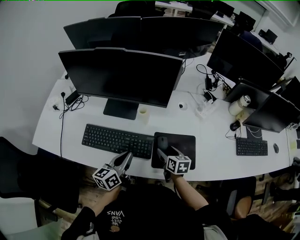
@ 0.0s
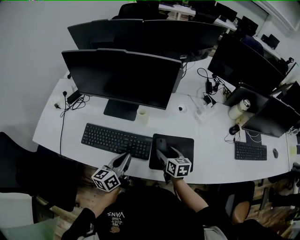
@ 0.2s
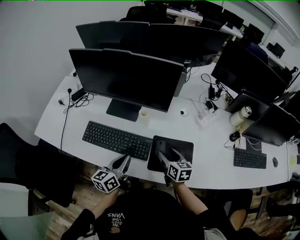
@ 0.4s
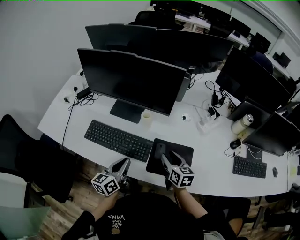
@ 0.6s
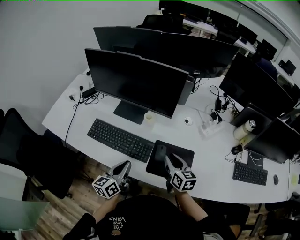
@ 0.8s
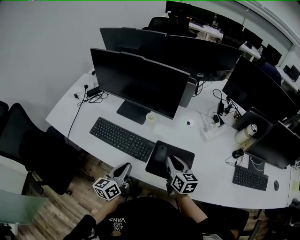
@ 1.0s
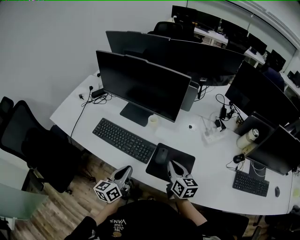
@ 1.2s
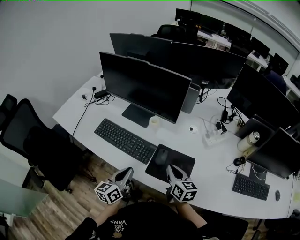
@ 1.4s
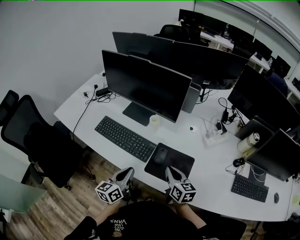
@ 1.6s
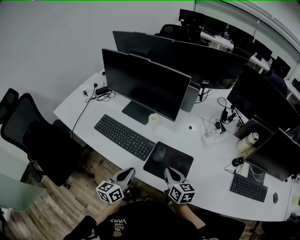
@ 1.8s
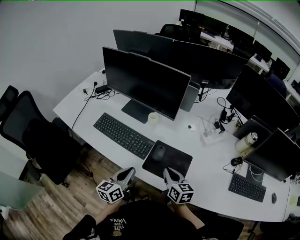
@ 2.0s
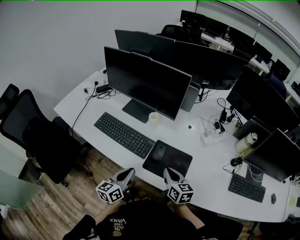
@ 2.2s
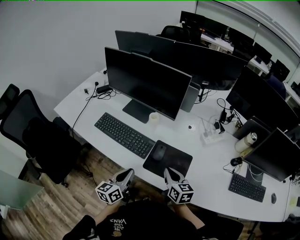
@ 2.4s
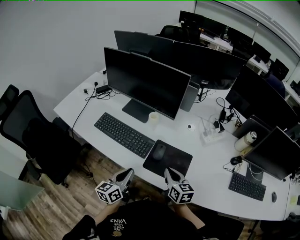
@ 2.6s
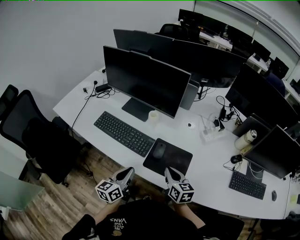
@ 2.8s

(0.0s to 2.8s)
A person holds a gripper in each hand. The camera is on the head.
0.0s - 1.4s: The left gripper is displaced backward by about 10 cm, and rotates about 20 degrees; the right gripper goes approximately 10 cm upward and backward, changes its angle by approximately 20 degrees, and closes up.
1.4s - 2.8s: The grippers make only small movements.

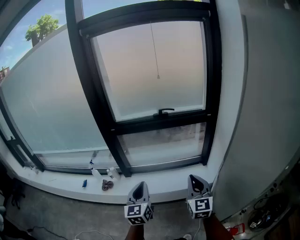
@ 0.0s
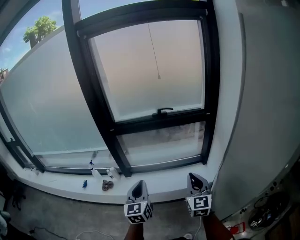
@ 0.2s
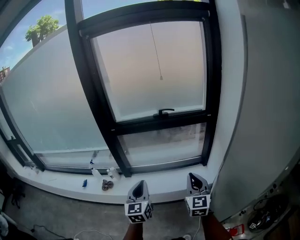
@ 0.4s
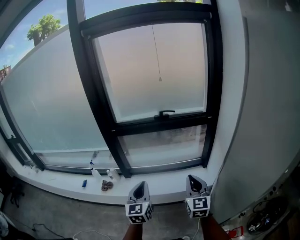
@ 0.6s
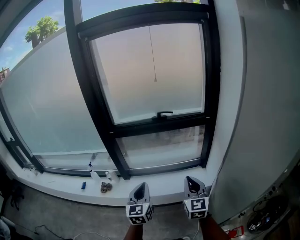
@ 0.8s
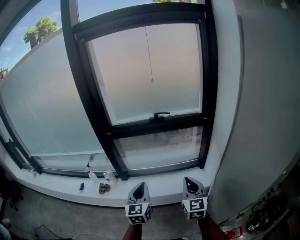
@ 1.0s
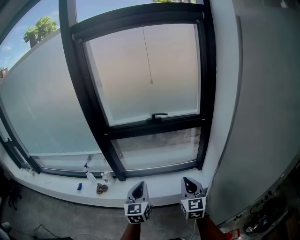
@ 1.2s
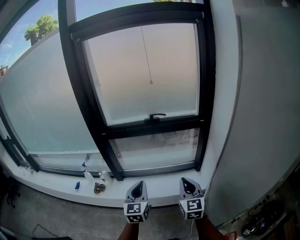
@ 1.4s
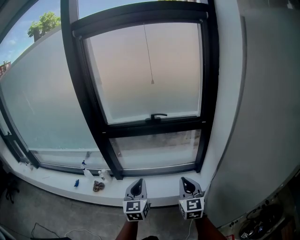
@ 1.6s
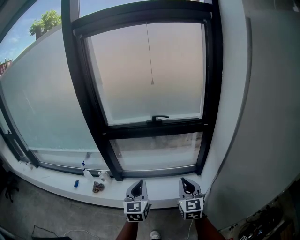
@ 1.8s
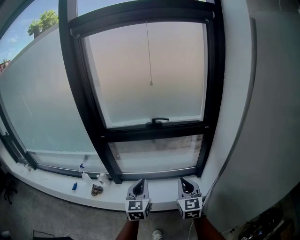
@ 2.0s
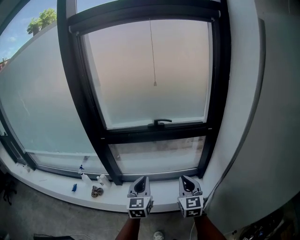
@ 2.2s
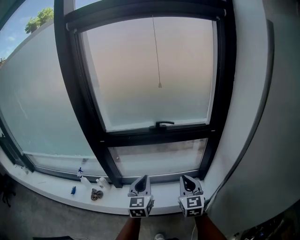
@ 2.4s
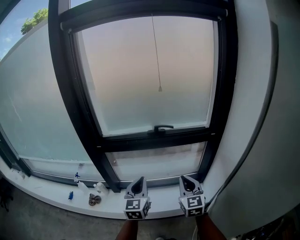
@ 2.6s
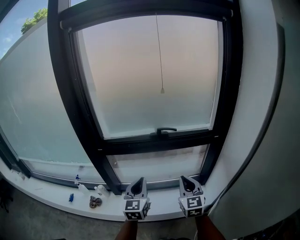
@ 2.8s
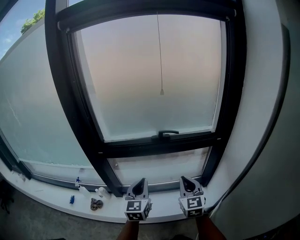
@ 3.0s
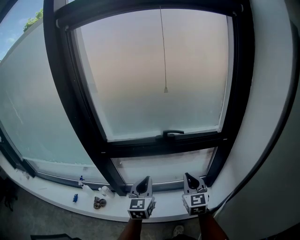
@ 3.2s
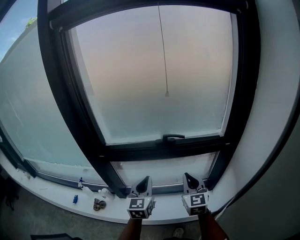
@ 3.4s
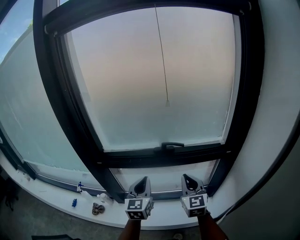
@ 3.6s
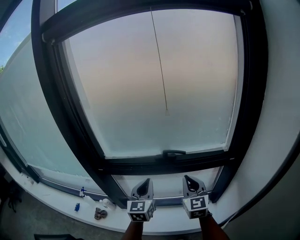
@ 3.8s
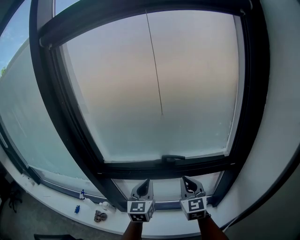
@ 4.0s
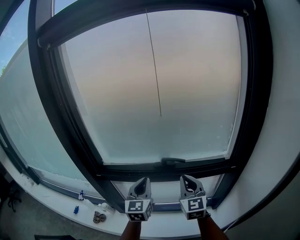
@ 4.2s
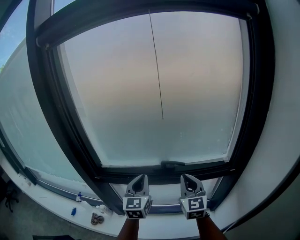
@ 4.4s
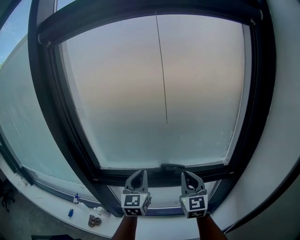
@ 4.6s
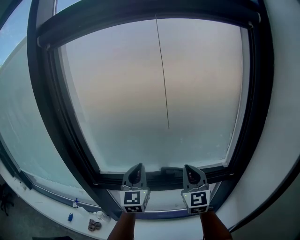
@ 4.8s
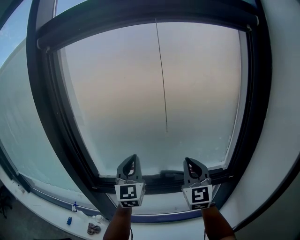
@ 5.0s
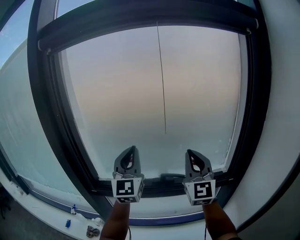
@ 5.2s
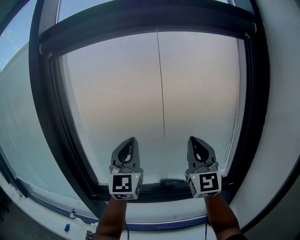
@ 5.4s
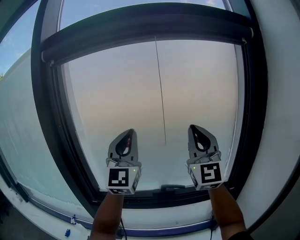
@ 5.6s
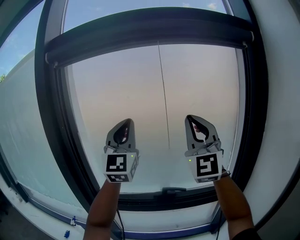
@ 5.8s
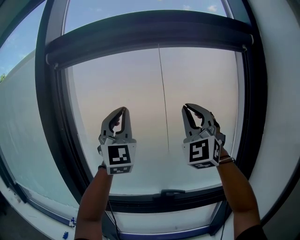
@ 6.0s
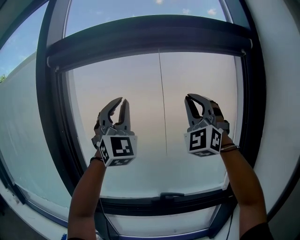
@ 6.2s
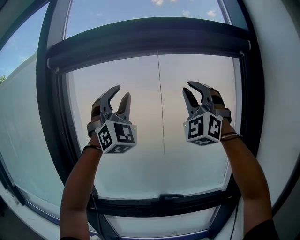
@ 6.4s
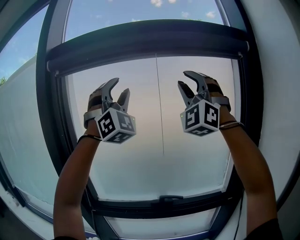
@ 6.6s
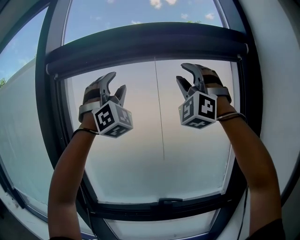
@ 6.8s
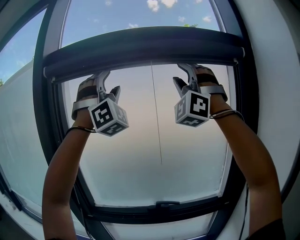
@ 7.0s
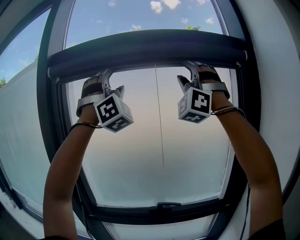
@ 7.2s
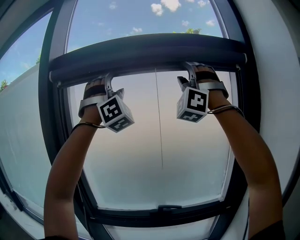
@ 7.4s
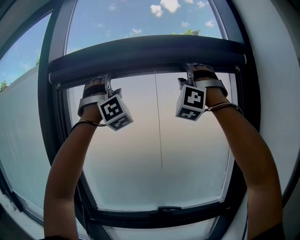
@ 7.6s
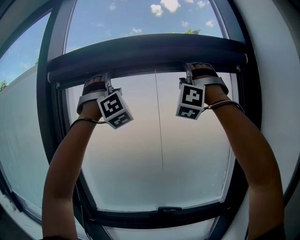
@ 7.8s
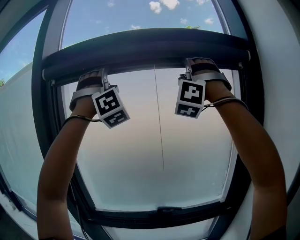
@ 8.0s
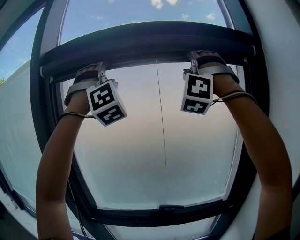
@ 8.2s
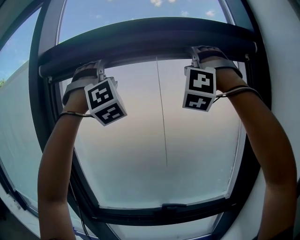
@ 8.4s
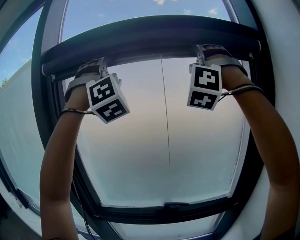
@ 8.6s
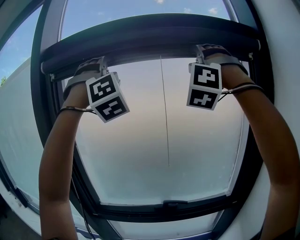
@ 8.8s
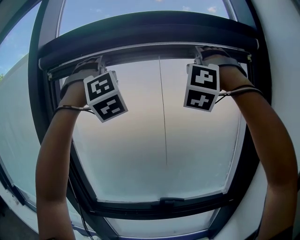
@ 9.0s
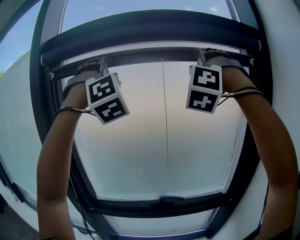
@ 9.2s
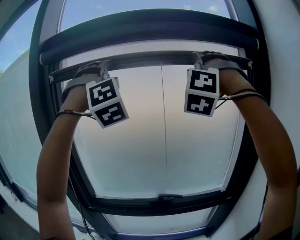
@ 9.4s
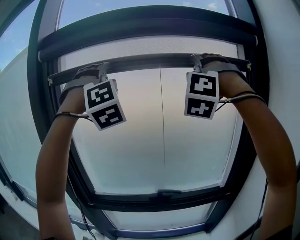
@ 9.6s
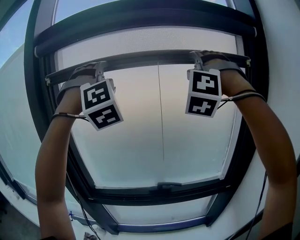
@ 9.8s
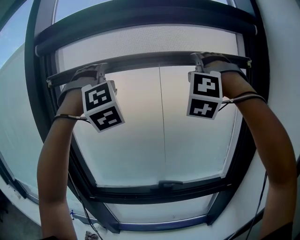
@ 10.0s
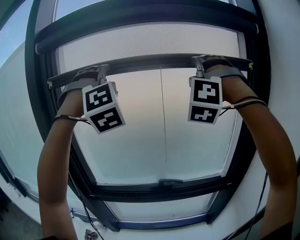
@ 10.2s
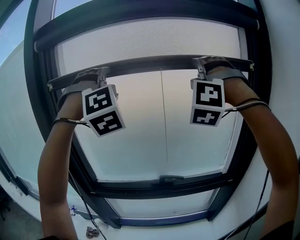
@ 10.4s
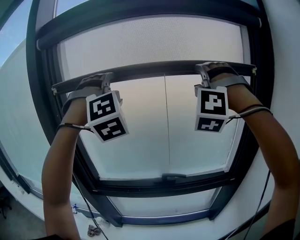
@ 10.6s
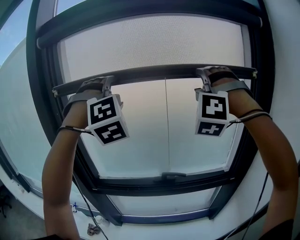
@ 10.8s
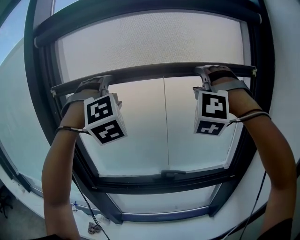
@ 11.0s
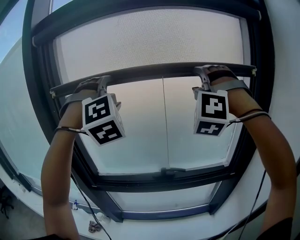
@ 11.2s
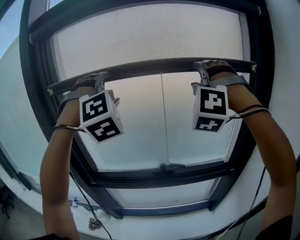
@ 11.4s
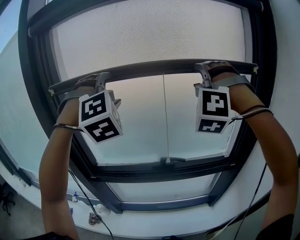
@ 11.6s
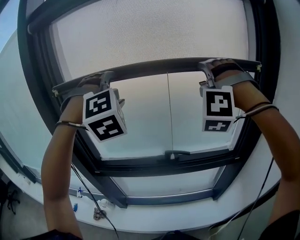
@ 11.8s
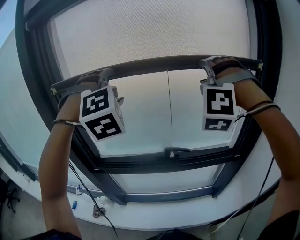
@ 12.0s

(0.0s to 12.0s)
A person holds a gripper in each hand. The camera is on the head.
0.0s - 1.6s: The right gripper is displaced forward by some 5 cm; the left gripper travels to the right and forward by some 10 cm.
1.6s - 3.0s: Both grippers move forward, some 20 cm.
3.0s - 4.4s: Both grippers move forward, roughly 20 cm.
4.4s - 6.0s: The two grippers go roughly 40 cm upward. The left gripper tilts its fingers about 40 degrees upward. The right gripper twists some 50 degrees counterclockwise, seen from behind.
6.0s - 7.6s: Both grippers travel together upward, about 20 cm. The left gripper twists roughly 50 degrees clockwise, seen from behind, and opens its fingers; the right gripper rolls counterclockwise, seen from behind, by roughly 40 degrees, and opens.
7.6s - 9.0s: The grippers stay close to where they were, moving slightly.
9.0s - 10.4s: Both grippers move downward, about 10 cm.
10.4s - 12.0s: The two grippers go roughly 15 cm downward.

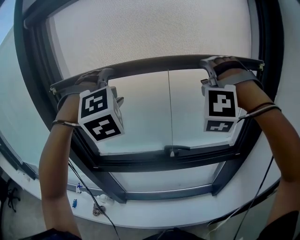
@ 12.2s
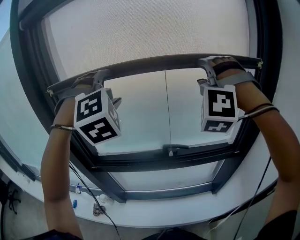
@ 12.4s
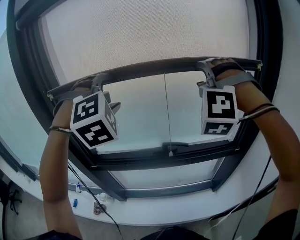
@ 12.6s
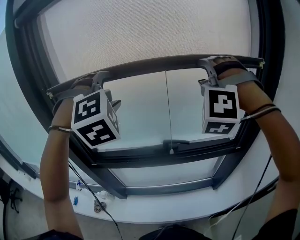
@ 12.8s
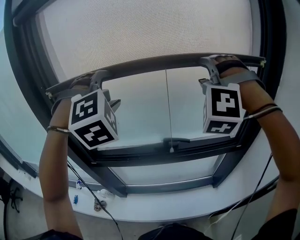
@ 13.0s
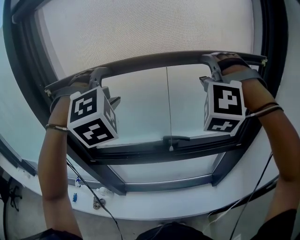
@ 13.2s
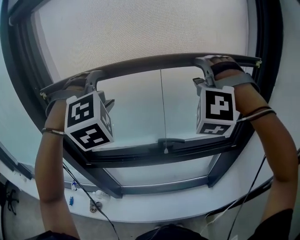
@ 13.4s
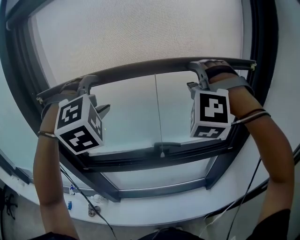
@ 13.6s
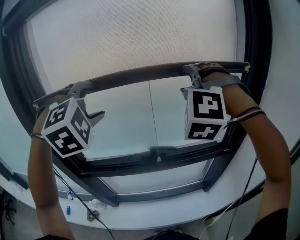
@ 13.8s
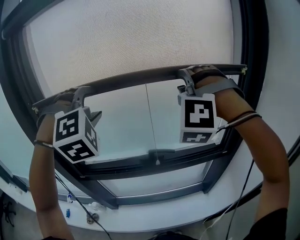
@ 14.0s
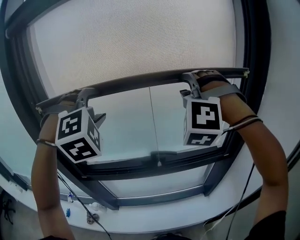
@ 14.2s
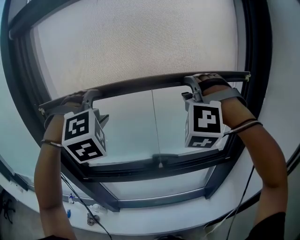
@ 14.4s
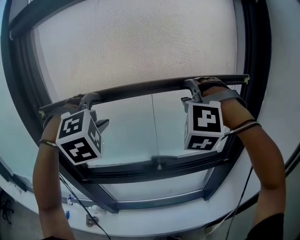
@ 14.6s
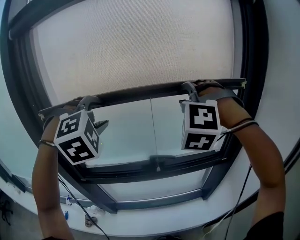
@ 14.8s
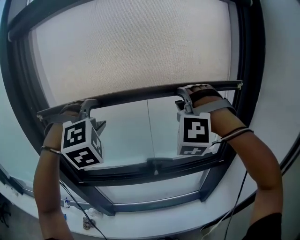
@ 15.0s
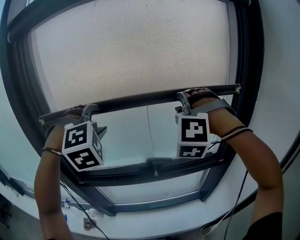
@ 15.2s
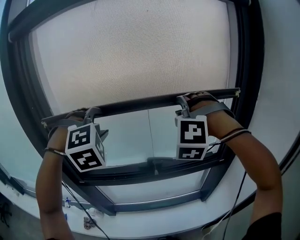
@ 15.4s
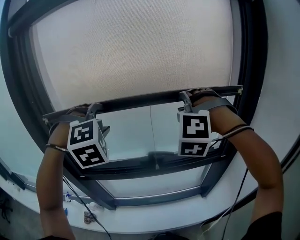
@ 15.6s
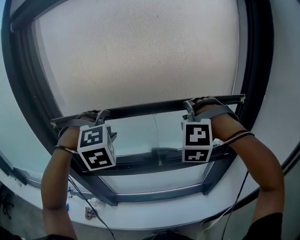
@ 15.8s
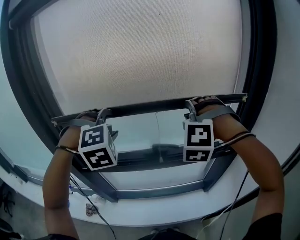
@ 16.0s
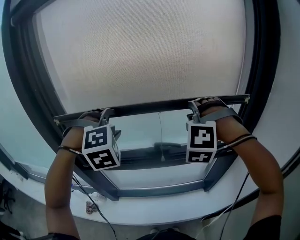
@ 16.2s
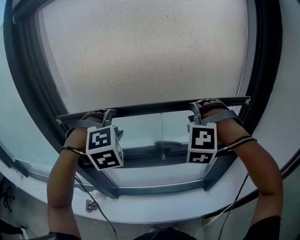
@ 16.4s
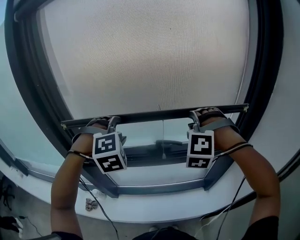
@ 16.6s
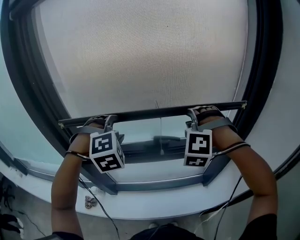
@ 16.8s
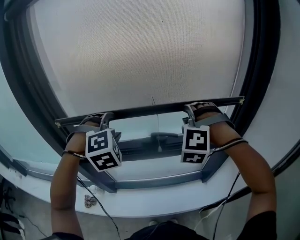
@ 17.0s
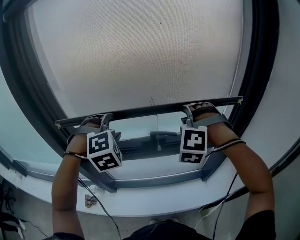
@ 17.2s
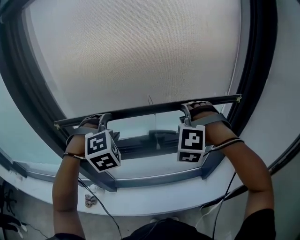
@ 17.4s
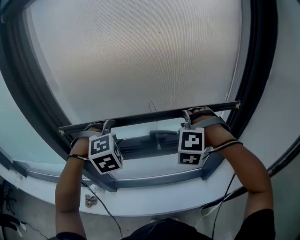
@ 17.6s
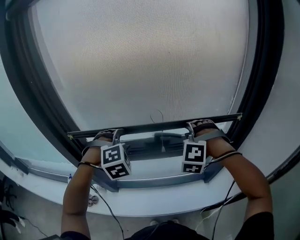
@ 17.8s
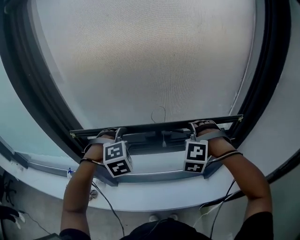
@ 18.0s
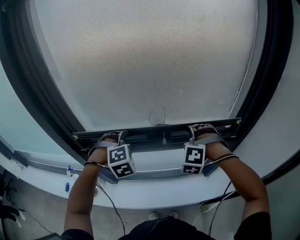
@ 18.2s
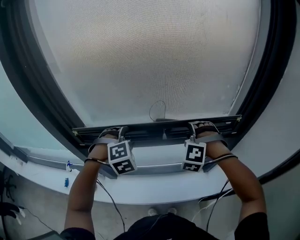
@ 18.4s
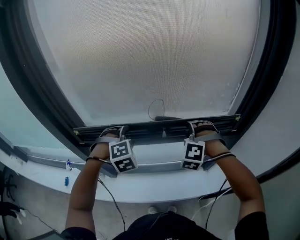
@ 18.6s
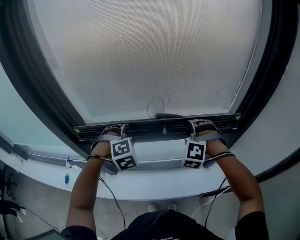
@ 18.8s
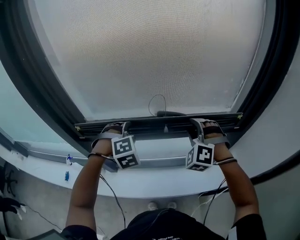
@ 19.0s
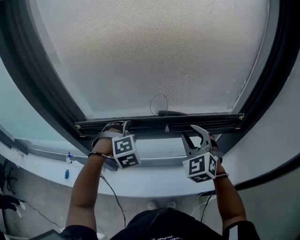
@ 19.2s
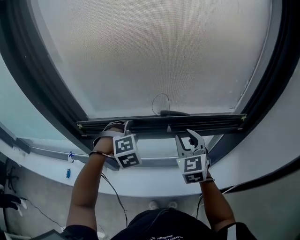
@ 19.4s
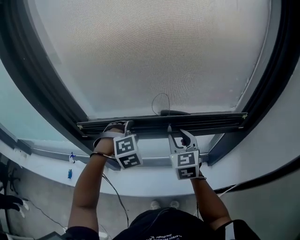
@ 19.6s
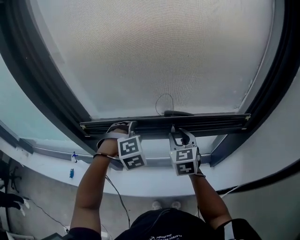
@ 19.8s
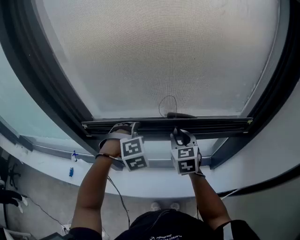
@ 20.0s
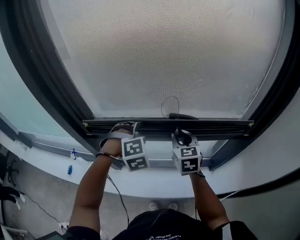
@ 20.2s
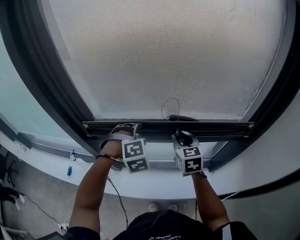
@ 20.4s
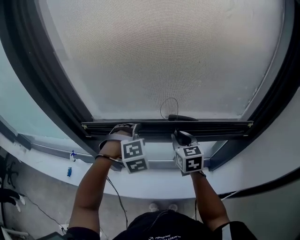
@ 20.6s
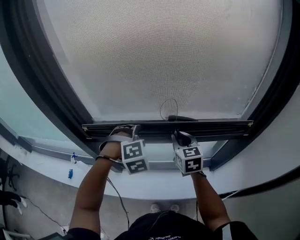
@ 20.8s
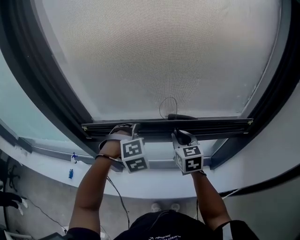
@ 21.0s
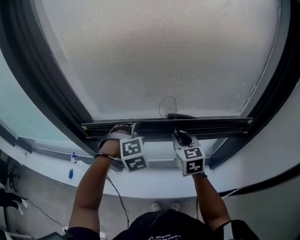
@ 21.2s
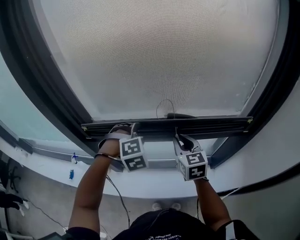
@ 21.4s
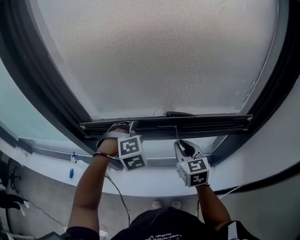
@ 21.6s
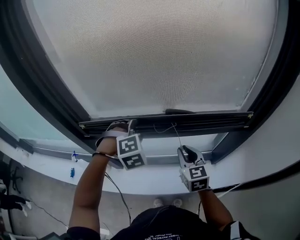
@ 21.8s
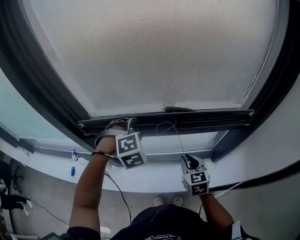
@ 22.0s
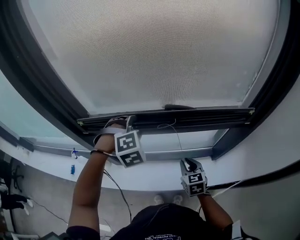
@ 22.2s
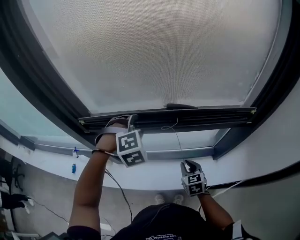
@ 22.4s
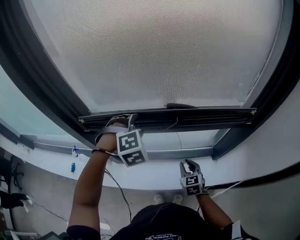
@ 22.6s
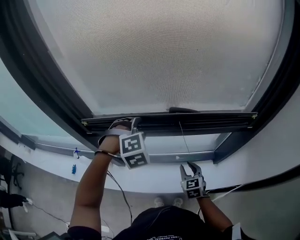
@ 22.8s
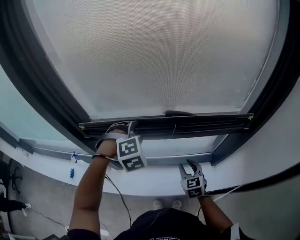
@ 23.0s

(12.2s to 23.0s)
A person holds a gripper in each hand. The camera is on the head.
12.2s - 13.8s: There are only small adjustments of the grippers.
13.8s - 15.2s: The right gripper closes.
15.2s - 16.8s: The grippers both shift downward by roughly 15 cm.
16.8s - 18.4s: The two grippers go about 15 cm downward.
18.4s - 20.0s: The right gripper shifts approximately 10 cm to the left, and rotates around the line of its fingers by roughly 80 degrees, clockwise from behind.
20.0s - 21.4s: There are only small adjustments of the grippers.
21.4s - 23.0s: The right gripper shifts some 20 cm downward and backward.
